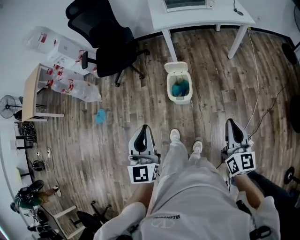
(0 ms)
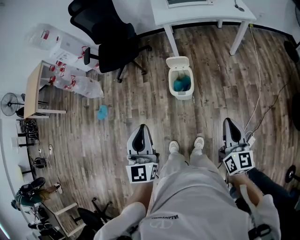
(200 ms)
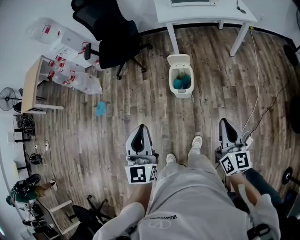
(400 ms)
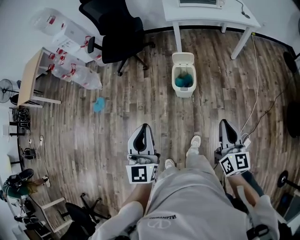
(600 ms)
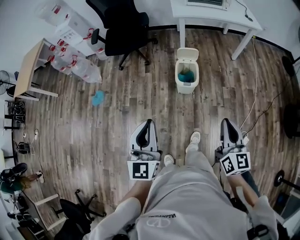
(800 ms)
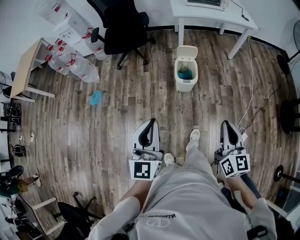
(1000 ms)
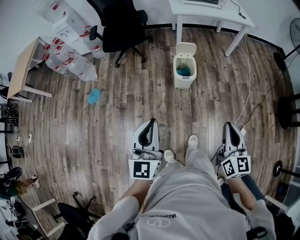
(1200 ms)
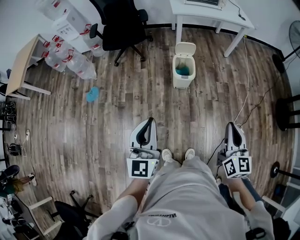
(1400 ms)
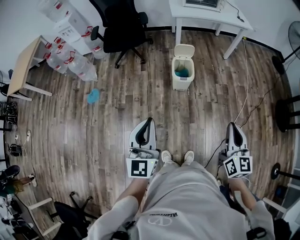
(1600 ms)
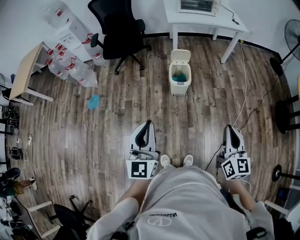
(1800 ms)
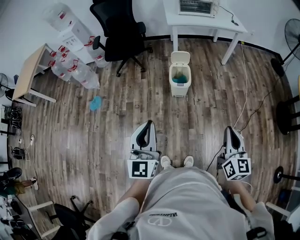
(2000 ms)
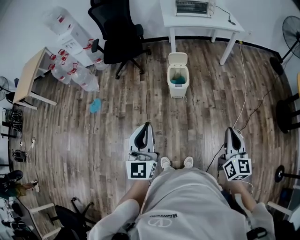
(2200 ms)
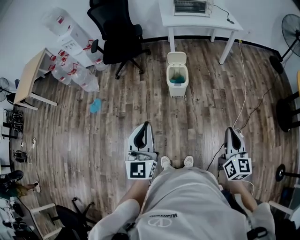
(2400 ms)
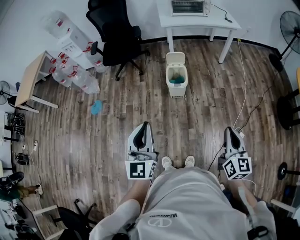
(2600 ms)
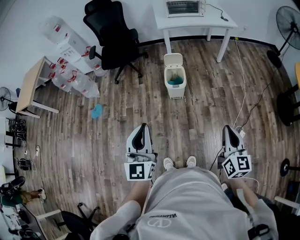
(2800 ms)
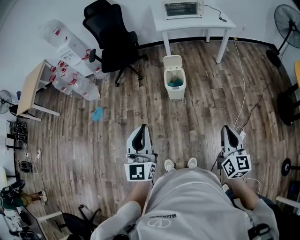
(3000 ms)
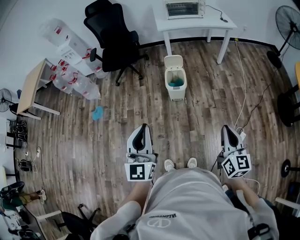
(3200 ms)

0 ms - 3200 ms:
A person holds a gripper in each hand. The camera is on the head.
0 ms - 1600 ms: Both grippers travel together backward and to the left, approximately 30 cm.
1600 ms - 3200 ms: The left gripper travels to the right by approximately 10 cm. Meanwhile the right gripper shifts roughly 10 cm to the right and backward.

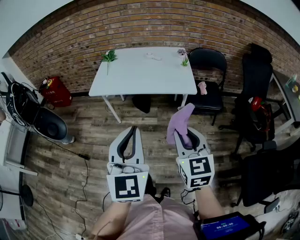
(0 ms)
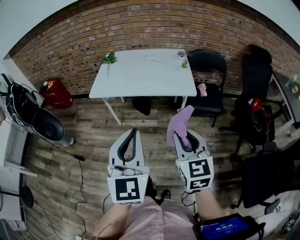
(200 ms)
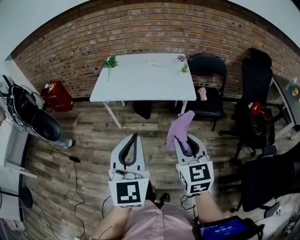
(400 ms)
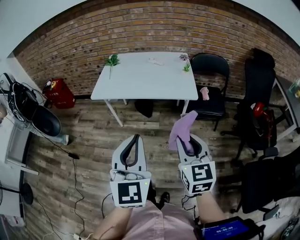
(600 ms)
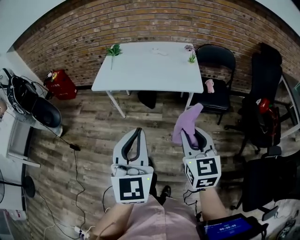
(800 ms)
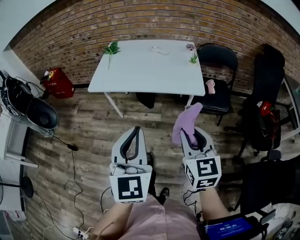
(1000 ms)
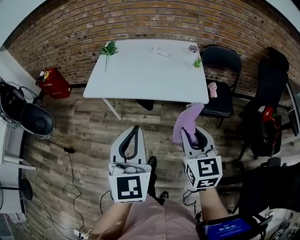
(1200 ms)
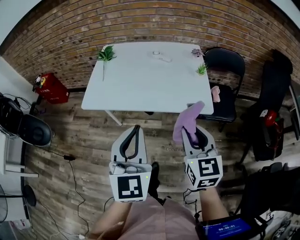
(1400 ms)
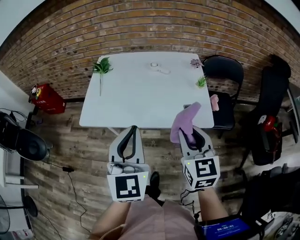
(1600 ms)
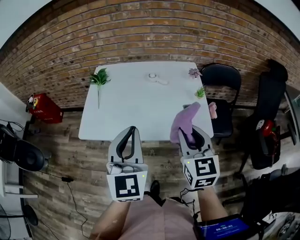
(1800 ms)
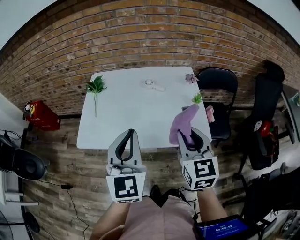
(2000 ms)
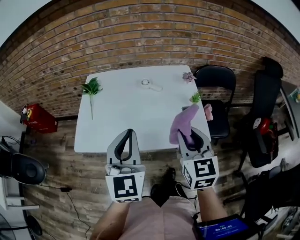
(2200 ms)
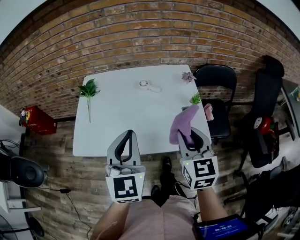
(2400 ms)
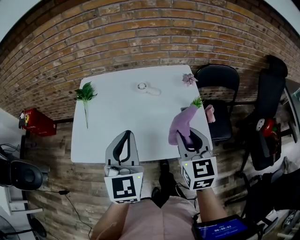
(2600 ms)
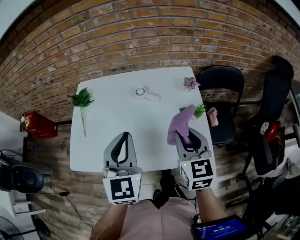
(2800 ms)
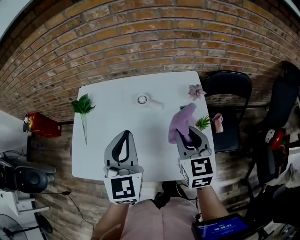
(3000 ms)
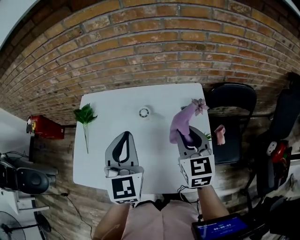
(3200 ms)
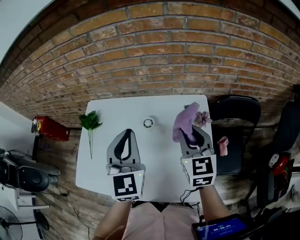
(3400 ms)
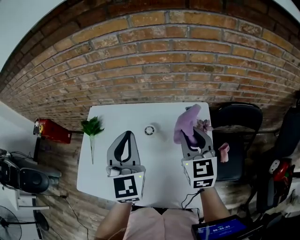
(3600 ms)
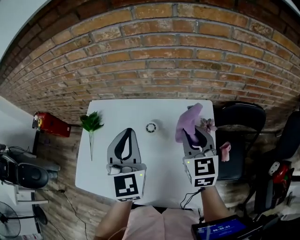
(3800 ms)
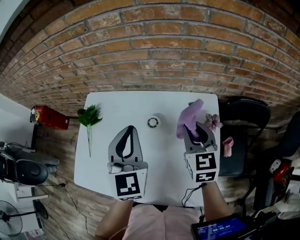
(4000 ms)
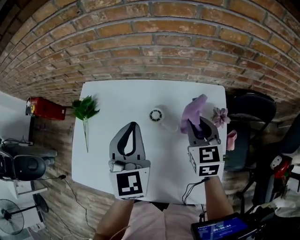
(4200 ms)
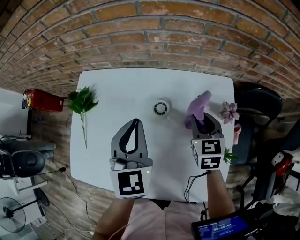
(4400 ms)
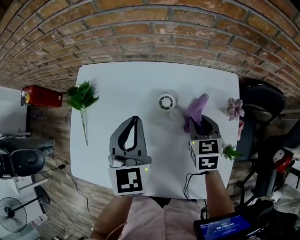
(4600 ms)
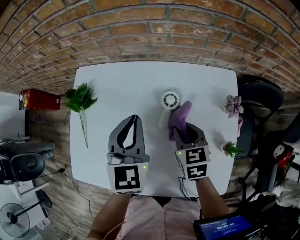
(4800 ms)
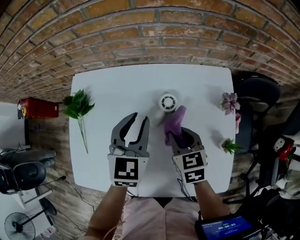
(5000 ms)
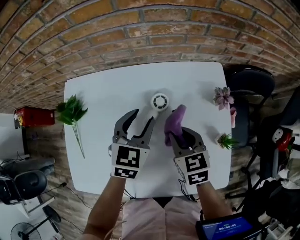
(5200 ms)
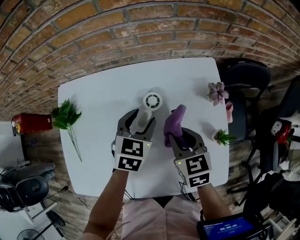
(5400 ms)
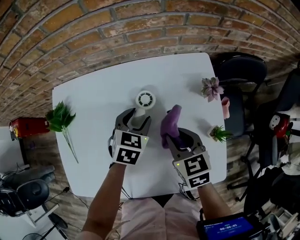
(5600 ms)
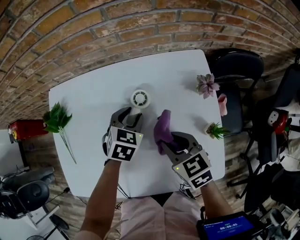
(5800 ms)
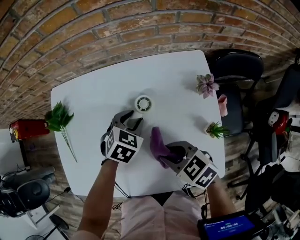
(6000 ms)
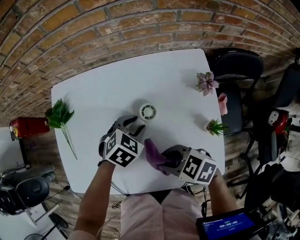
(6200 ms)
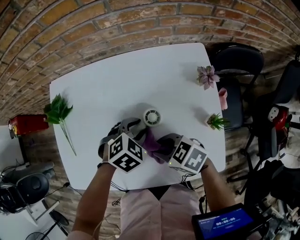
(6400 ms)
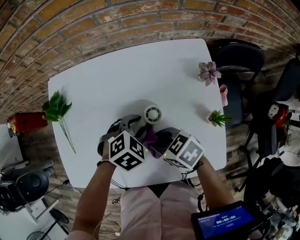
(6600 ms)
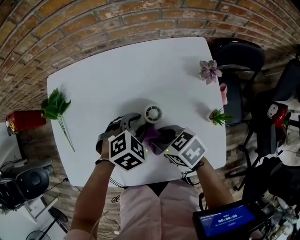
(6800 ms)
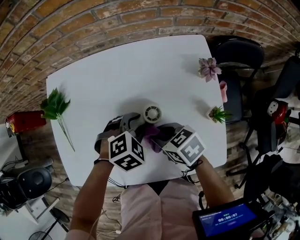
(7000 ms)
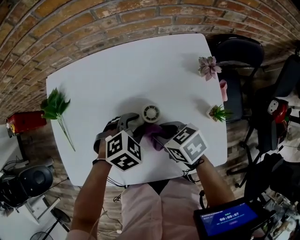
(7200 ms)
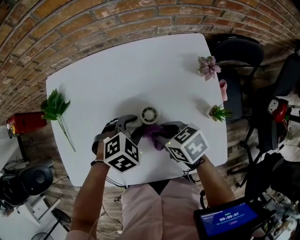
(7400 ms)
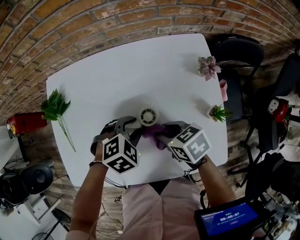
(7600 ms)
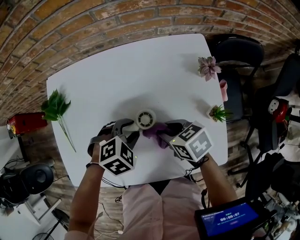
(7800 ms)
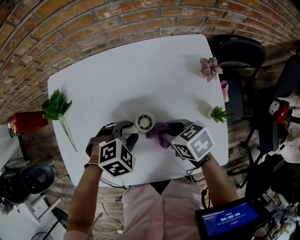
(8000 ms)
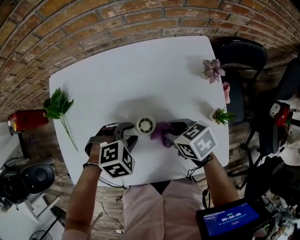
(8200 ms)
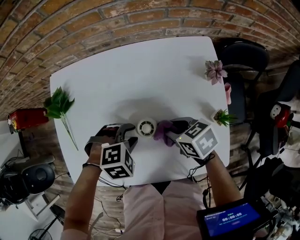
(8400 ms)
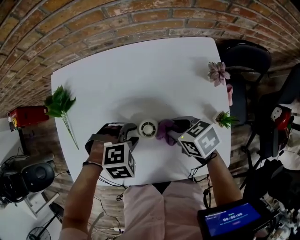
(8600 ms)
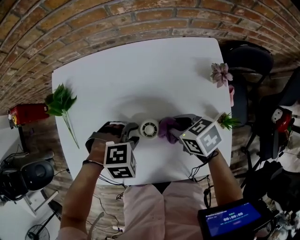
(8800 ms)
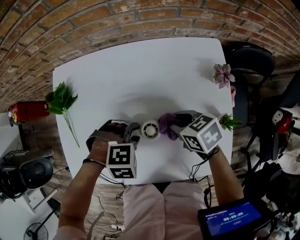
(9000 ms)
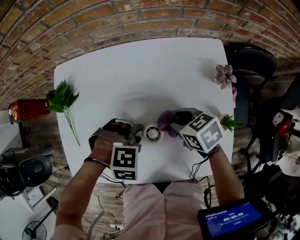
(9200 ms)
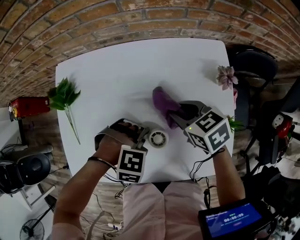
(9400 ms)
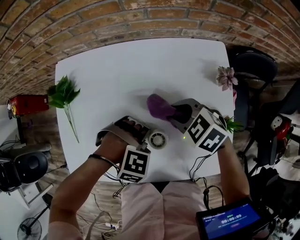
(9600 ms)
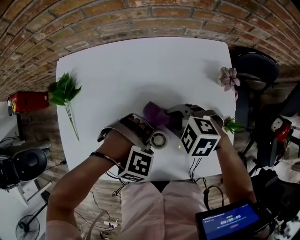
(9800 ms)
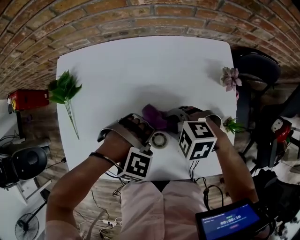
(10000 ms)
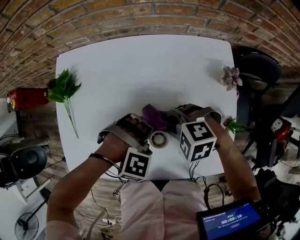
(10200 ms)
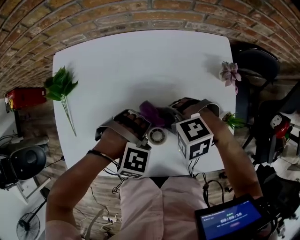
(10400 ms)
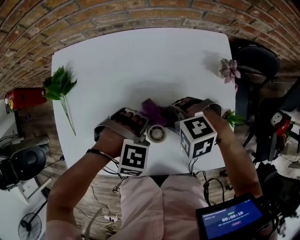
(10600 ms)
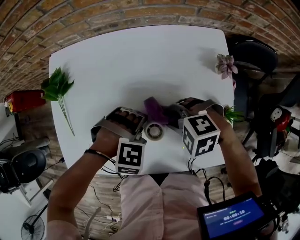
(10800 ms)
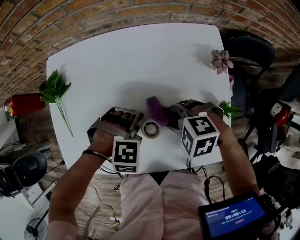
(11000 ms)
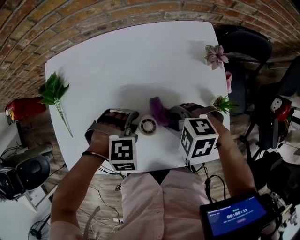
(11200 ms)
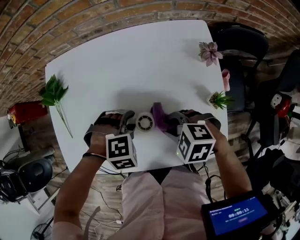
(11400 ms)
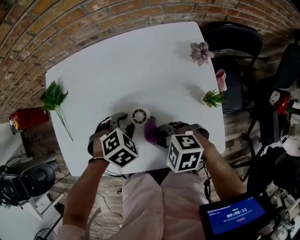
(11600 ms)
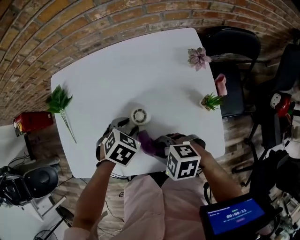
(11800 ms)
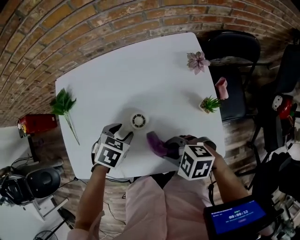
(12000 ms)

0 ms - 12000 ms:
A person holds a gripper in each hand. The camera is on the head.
0 ms - 1600 ms: Both grippers move forward, approximately 30 cm.
1600 ms - 3000 ms: Both grippers travel together forward, some 30 cm.
3000 ms - 4400 ms: Both grippers travel together forward and downward, some 20 cm.
4400 ms - 6000 ms: The left gripper goes roughly 20 cm downward, tilts its fingers roughly 40 degrees downward, and opens up. Meanwhile the right gripper moves backward and to the left, about 20 cm, and swivels about 40 degrees.
6000 ms - 7600 ms: The left gripper moves approximately 10 cm, and rotates about 30 degrees; the right gripper turns by approximately 20 degrees.
7600 ms - 9000 ms: The left gripper changes its angle by some 30 degrees.
9000 ms - 10400 ms: The right gripper ends up about 5 cm from where it was, and rotates around the line of its fingers by some 70 degrees, counterclockwise from behind; the left gripper turns by roughly 20 degrees.
10400 ms - 12000 ms: The left gripper twists roughly 80 degrees counterclockwise, seen from behind, while the right gripper shifts by about 15 cm, and changes its angle by roughly 40 degrees.

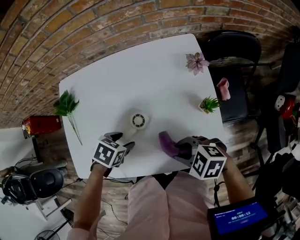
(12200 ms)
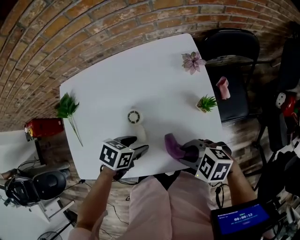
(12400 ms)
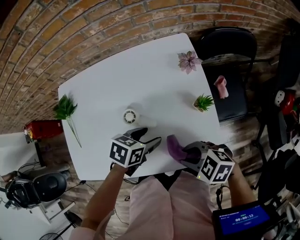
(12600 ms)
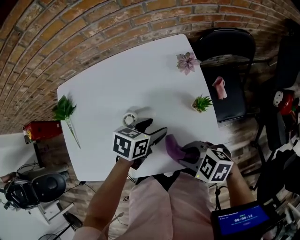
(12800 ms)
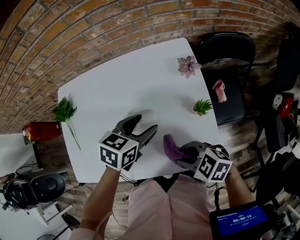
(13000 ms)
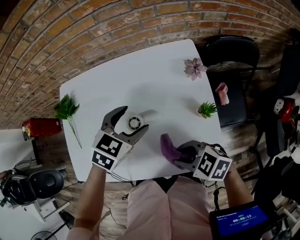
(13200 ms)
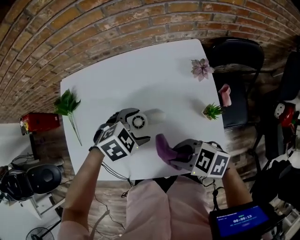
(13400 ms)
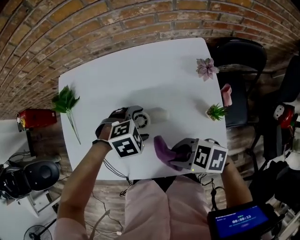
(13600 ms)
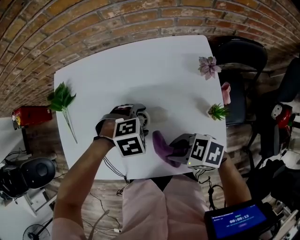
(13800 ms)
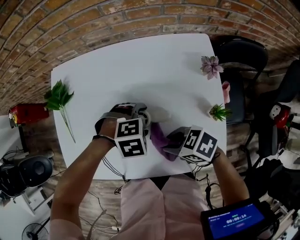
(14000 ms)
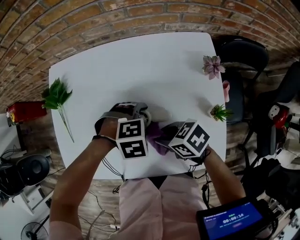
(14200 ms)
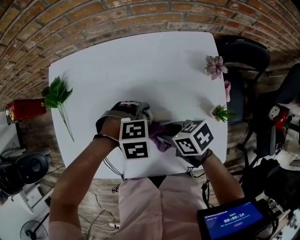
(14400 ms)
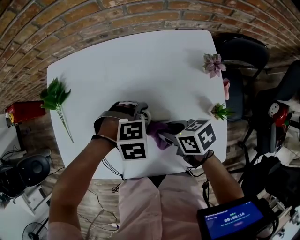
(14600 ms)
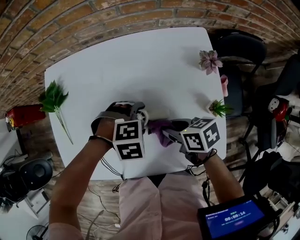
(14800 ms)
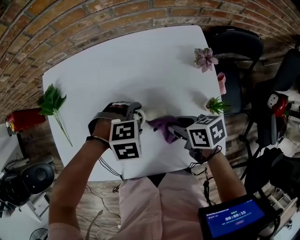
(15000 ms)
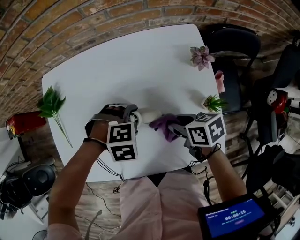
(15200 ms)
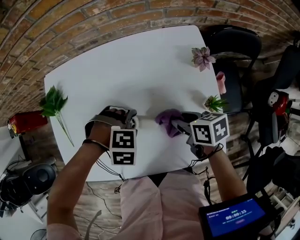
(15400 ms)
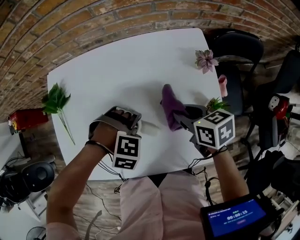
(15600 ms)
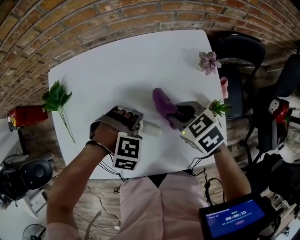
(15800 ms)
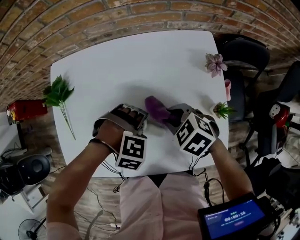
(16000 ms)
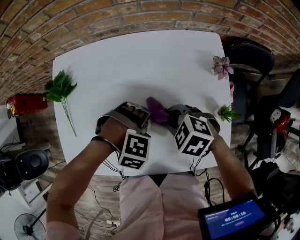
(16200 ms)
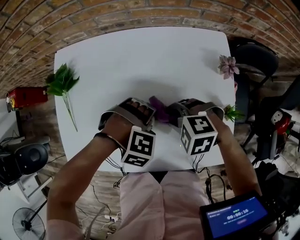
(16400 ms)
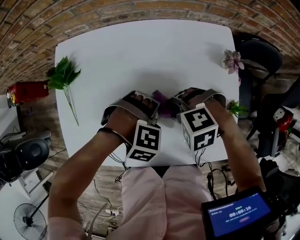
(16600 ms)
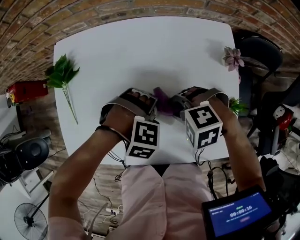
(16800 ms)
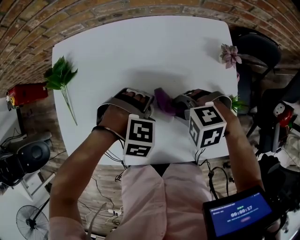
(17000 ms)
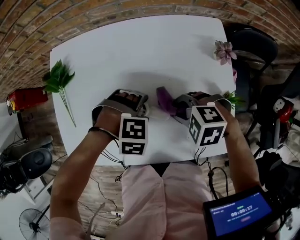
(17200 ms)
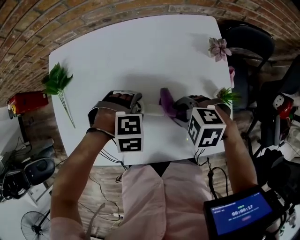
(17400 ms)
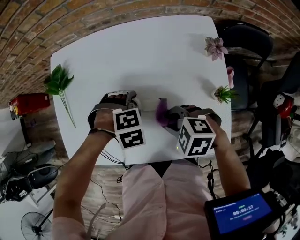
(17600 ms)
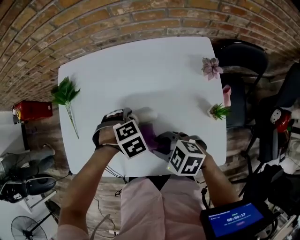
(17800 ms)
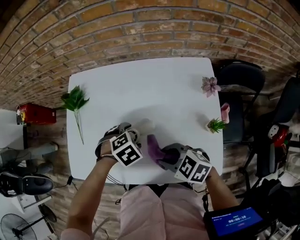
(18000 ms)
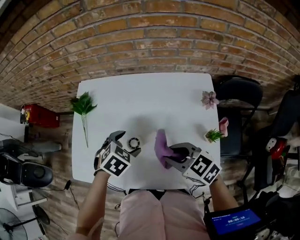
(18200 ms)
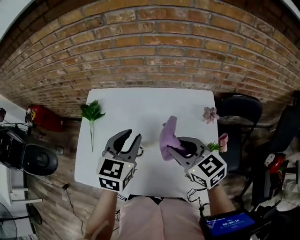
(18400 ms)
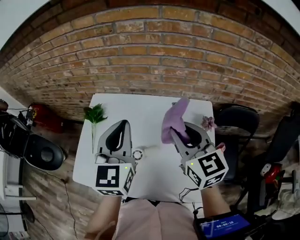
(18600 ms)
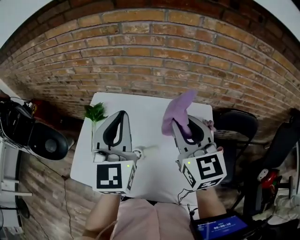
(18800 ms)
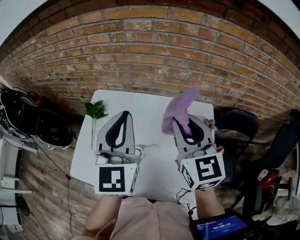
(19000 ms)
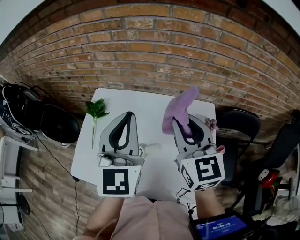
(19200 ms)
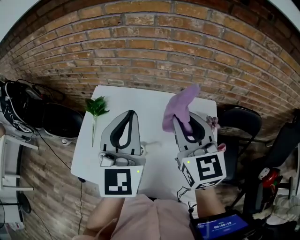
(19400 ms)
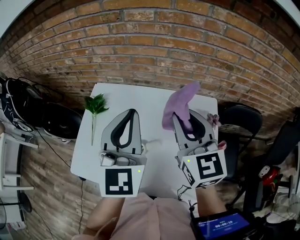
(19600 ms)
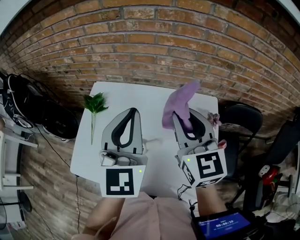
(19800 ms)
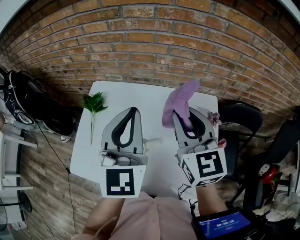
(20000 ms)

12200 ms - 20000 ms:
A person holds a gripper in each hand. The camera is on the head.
12200 ms - 13800 ms: The left gripper goes upward and returns, approximately 10 cm each way, and rotates around the line of its fingers by roughly 50 degrees, clockwise from behind.
13800 ms - 15400 ms: The right gripper moves approximately 15 cm, and swivels about 60 degrees. The left gripper rotates about 20 degrees.
15400 ms - 16800 ms: The right gripper changes place by some 10 cm, and twists about 90 degrees counterclockwise, seen from behind.
16800 ms - 18400 ms: The two grippers go about 20 cm upward. The right gripper angles its fingers upward, by about 40 degrees, while the left gripper angles its fingers upward, by roughly 60 degrees, and closes.
18400 ms - 20000 ms: The left gripper travels upward by approximately 15 cm, and rotates some 30 degrees; the right gripper is displaced upward and forward by roughly 15 cm, and rotates about 30 degrees.
